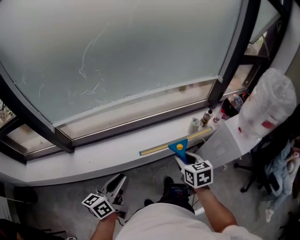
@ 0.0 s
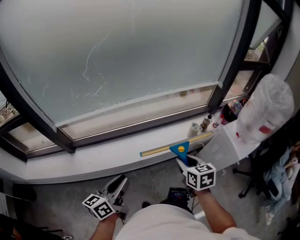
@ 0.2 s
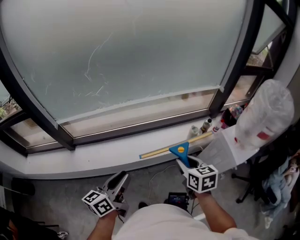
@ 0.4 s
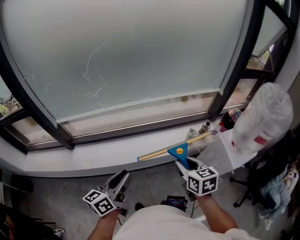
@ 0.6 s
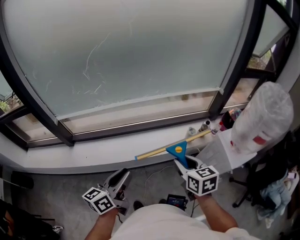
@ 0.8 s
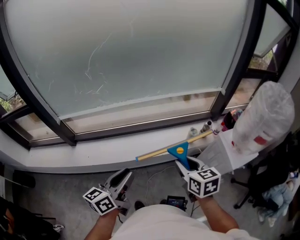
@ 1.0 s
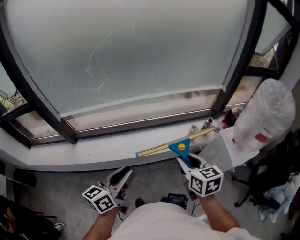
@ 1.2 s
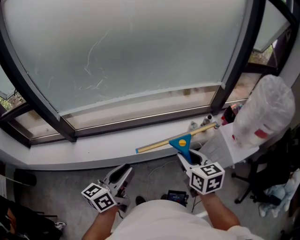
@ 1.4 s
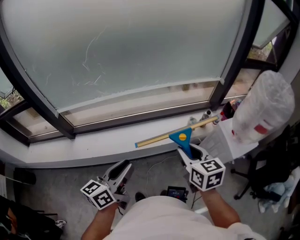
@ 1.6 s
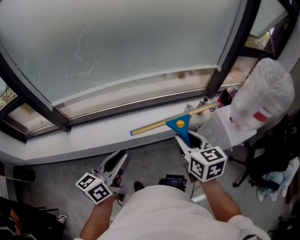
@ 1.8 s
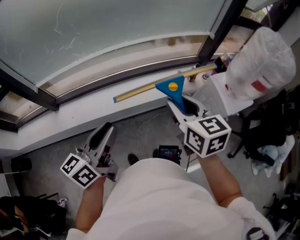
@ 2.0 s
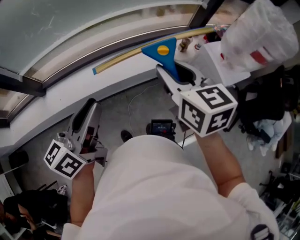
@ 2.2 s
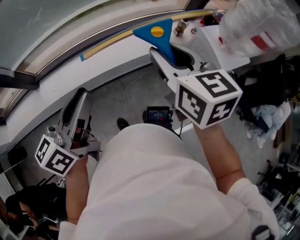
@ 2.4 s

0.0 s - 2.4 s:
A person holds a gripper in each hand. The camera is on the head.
0.0 s - 1.2 s: The right gripper goes some 10 cm upward and to the right. The left gripper goes some 15 cm to the right and upward.
1.2 s - 2.4 s: The grippers move only a little.

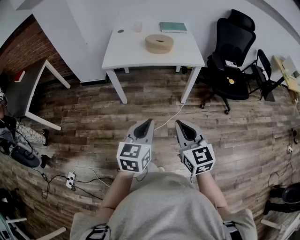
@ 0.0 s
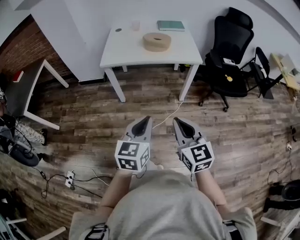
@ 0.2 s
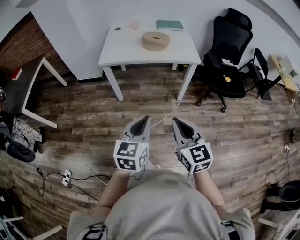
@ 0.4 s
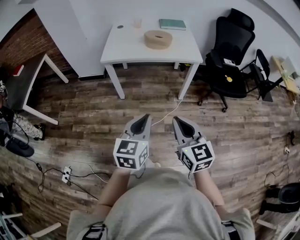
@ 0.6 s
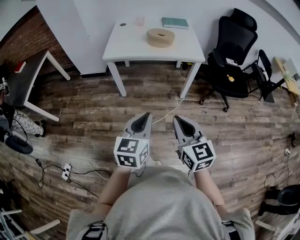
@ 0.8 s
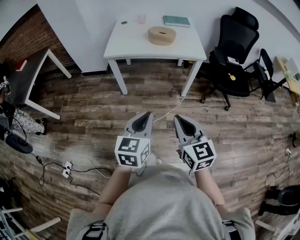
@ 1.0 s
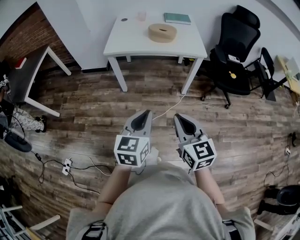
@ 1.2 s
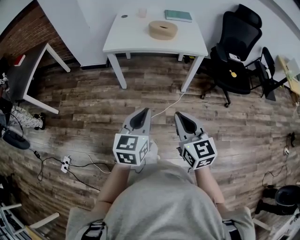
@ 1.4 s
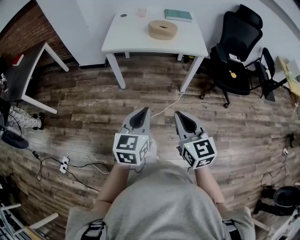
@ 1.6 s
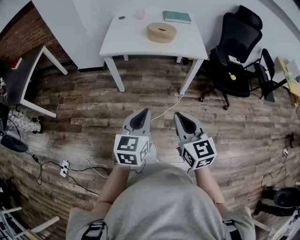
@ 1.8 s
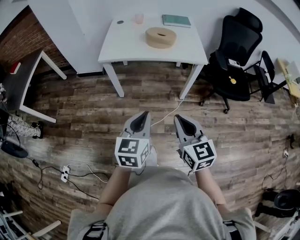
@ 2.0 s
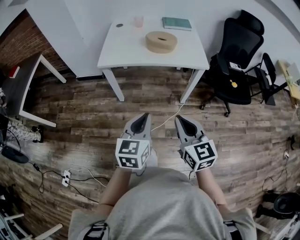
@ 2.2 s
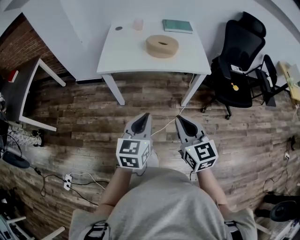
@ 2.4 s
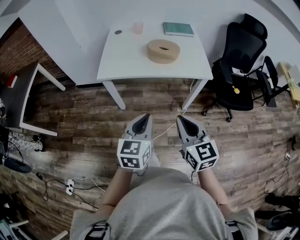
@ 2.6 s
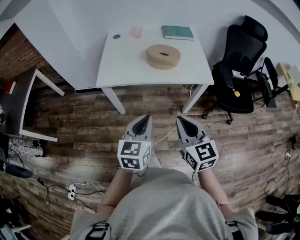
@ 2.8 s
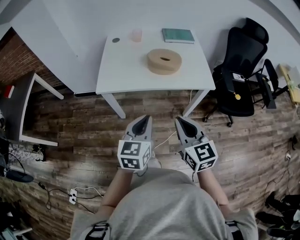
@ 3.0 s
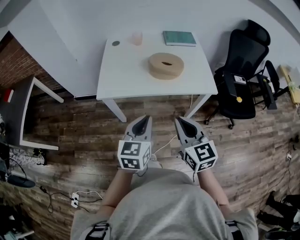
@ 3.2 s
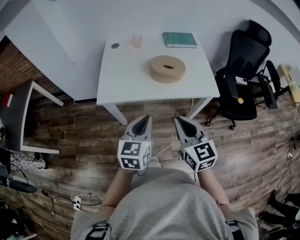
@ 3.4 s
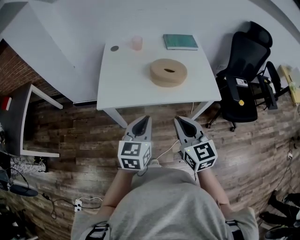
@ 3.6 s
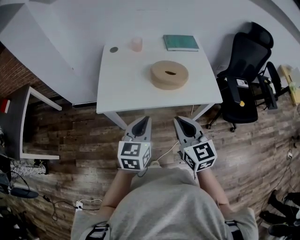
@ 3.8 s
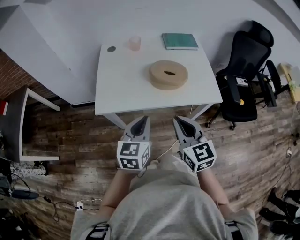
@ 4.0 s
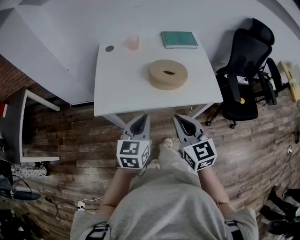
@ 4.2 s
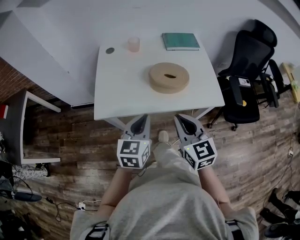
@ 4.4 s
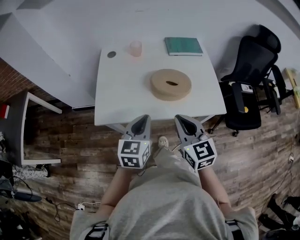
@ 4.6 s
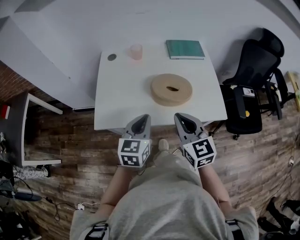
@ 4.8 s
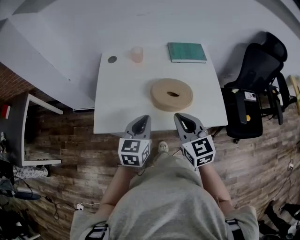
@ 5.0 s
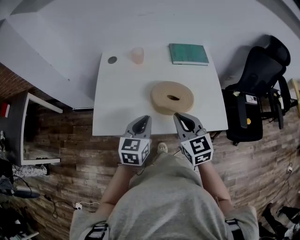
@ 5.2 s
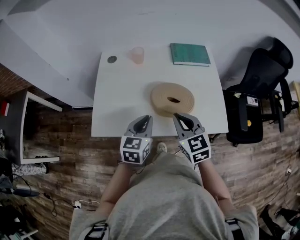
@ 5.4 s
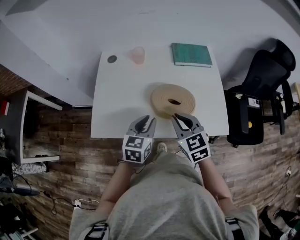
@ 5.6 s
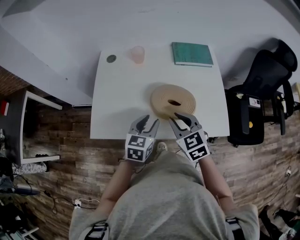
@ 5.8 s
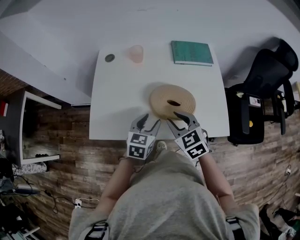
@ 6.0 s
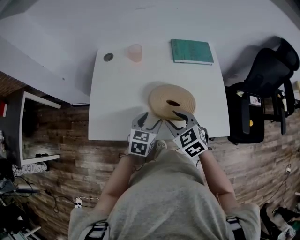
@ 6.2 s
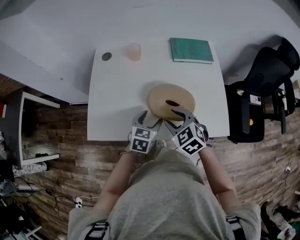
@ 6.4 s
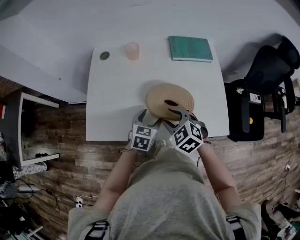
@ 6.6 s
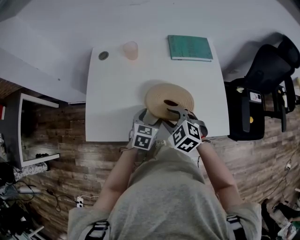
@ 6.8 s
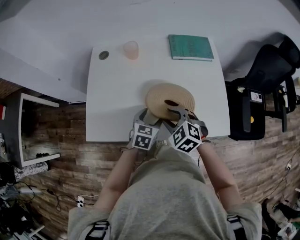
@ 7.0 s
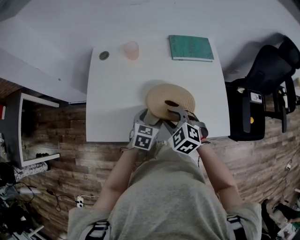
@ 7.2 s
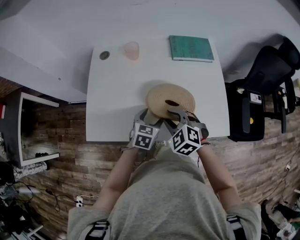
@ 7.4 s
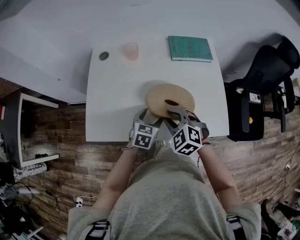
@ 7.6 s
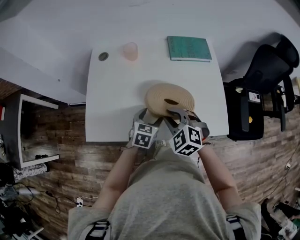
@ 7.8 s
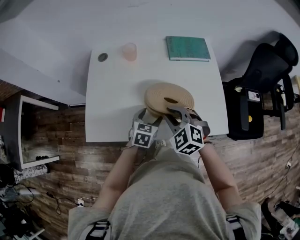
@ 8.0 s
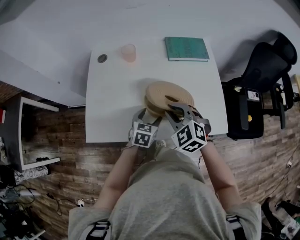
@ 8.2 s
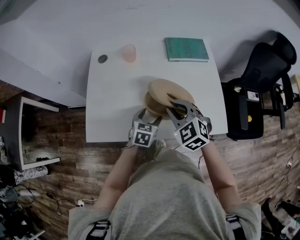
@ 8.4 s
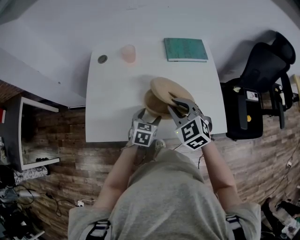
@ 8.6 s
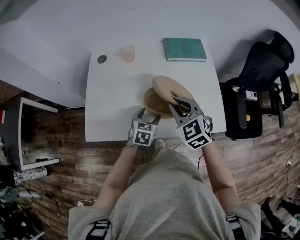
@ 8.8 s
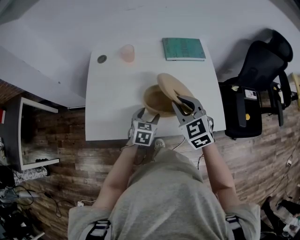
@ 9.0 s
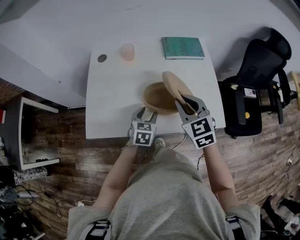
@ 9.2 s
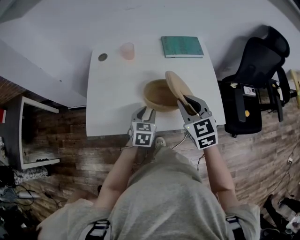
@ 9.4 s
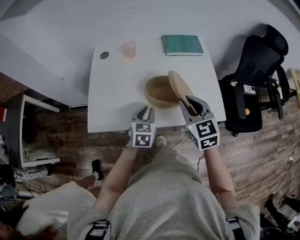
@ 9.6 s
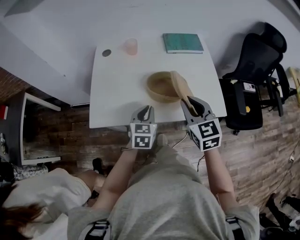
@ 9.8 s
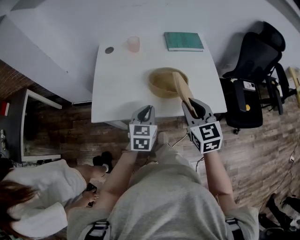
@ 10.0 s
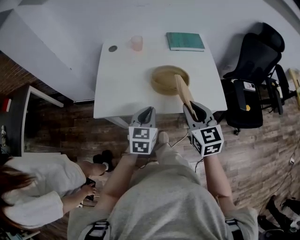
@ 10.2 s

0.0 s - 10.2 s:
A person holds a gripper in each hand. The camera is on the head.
0.0 s - 1.4 s: There are only small adjustments of the grippers.
1.4 s - 3.0 s: The two grippers go about 30 cm forward.
3.0 s - 4.4 s: The grippers both shift forward by some 20 cm.
4.4 s - 5.8 s: Both grippers travel together forward and downward, about 20 cm. The right gripper swivels roughly 20 degrees. Meanwhile the left gripper opens.
5.8 s - 7.2 s: Both grippers travel together downward, some 10 cm. The right gripper rotates some 30 degrees, and opens its fingers. The left gripper opens.
7.2 s - 8.8 s: The right gripper travels upward by approximately 10 cm, turns by roughly 20 degrees, and closes its fingers.
8.8 s - 10.2 s: The left gripper shifts approximately 20 cm backward and upward, and closes; the right gripper travels backward by approximately 15 cm, and rotates approximately 30 degrees.

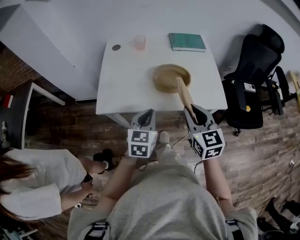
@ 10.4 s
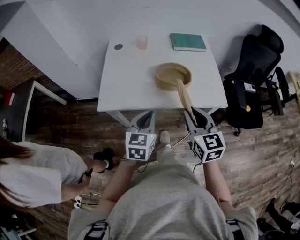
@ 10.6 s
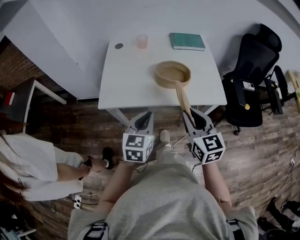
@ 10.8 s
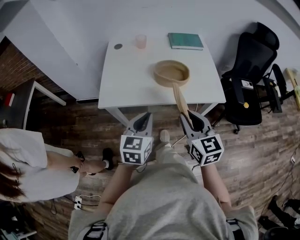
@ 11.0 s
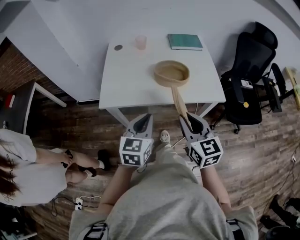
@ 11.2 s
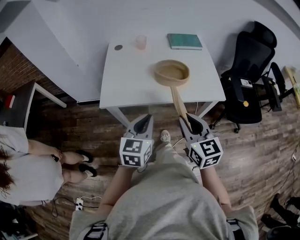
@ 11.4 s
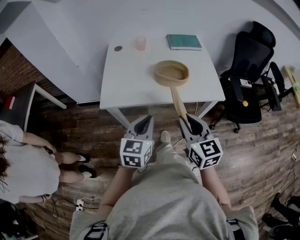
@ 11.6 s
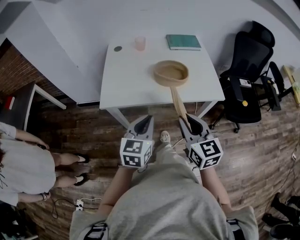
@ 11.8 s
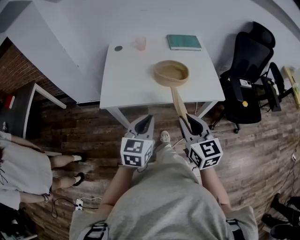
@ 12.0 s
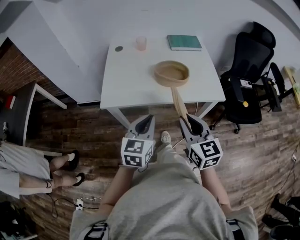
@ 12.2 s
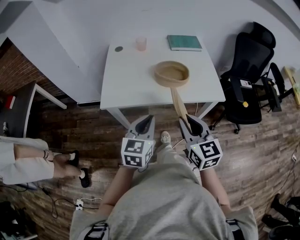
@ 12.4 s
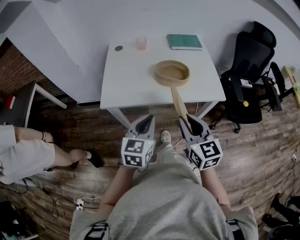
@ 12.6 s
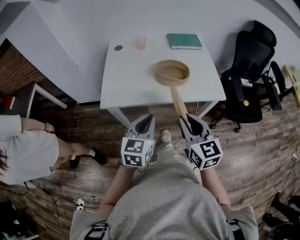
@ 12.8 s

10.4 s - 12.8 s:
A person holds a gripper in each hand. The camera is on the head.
10.4 s - 11.6 s: The two grippers go approximately 10 cm backward.
11.6 s - 12.8 s: Neither gripper changes place.

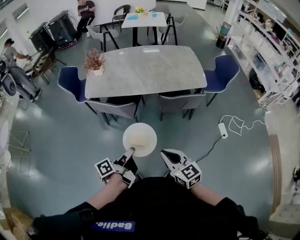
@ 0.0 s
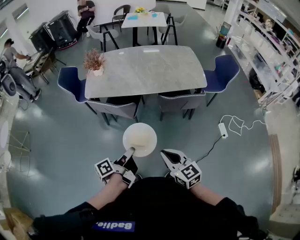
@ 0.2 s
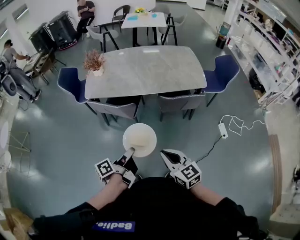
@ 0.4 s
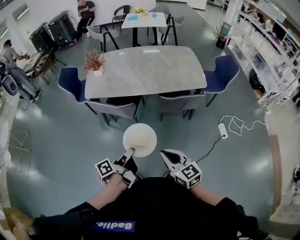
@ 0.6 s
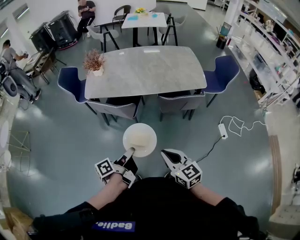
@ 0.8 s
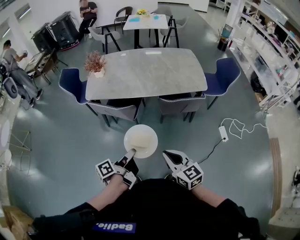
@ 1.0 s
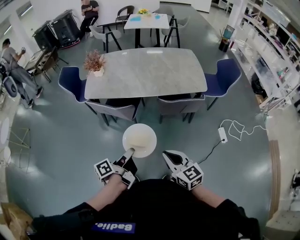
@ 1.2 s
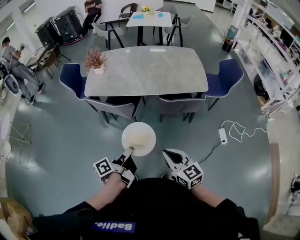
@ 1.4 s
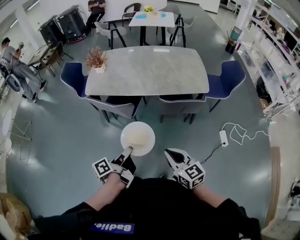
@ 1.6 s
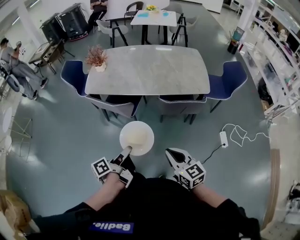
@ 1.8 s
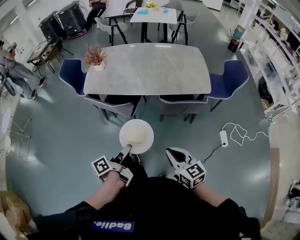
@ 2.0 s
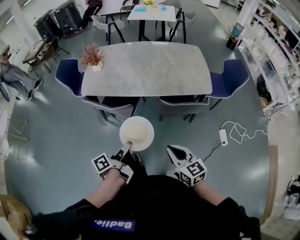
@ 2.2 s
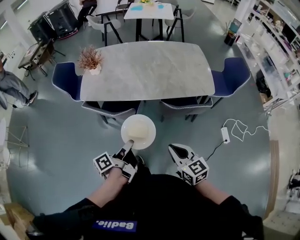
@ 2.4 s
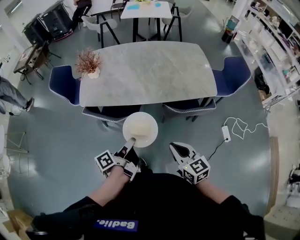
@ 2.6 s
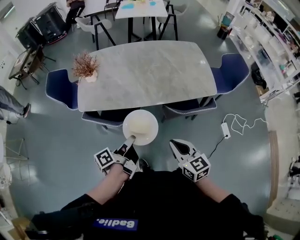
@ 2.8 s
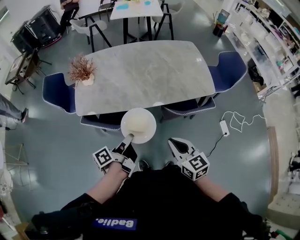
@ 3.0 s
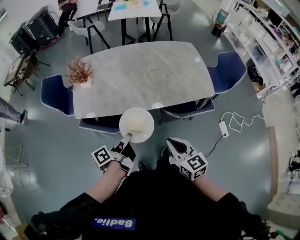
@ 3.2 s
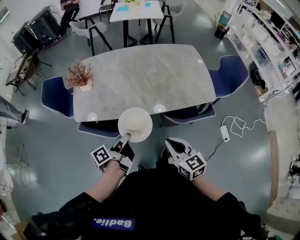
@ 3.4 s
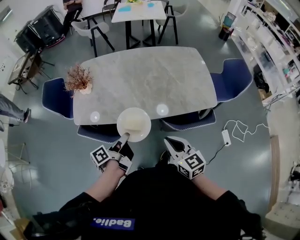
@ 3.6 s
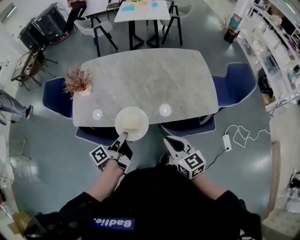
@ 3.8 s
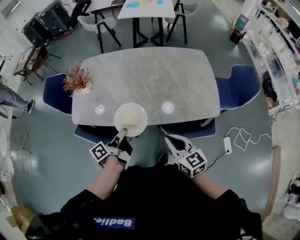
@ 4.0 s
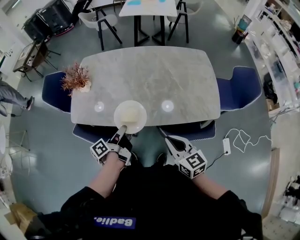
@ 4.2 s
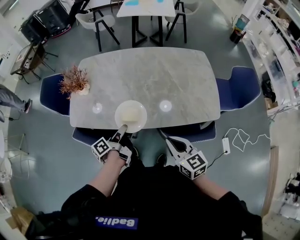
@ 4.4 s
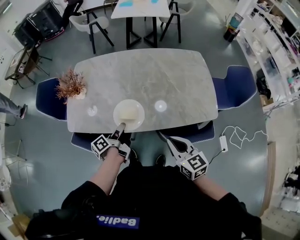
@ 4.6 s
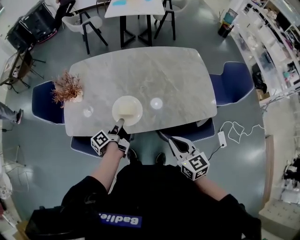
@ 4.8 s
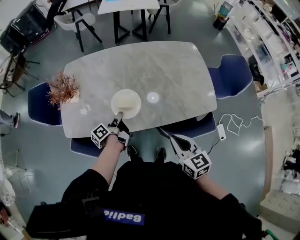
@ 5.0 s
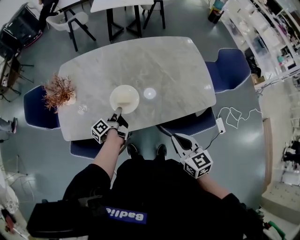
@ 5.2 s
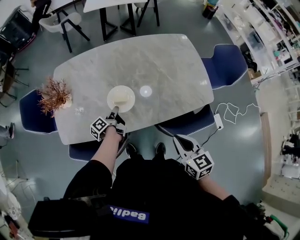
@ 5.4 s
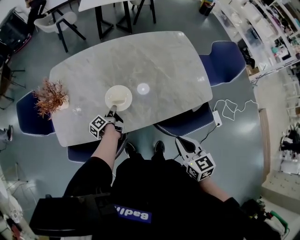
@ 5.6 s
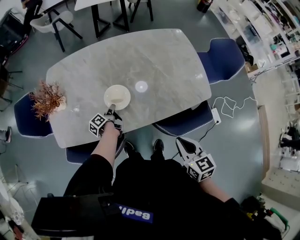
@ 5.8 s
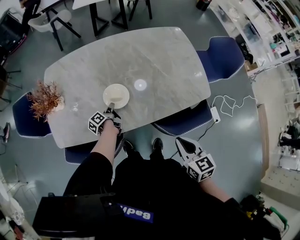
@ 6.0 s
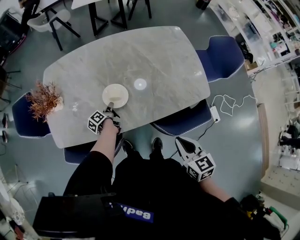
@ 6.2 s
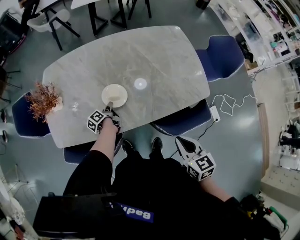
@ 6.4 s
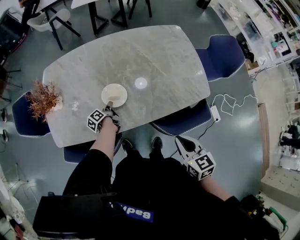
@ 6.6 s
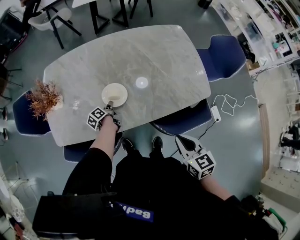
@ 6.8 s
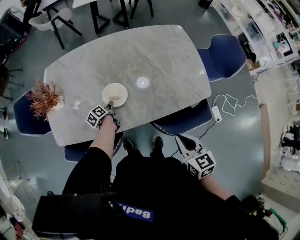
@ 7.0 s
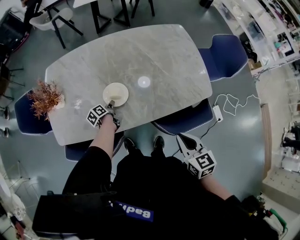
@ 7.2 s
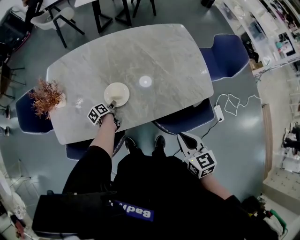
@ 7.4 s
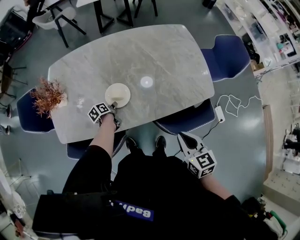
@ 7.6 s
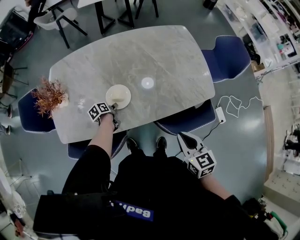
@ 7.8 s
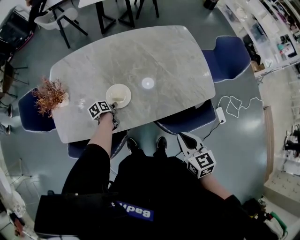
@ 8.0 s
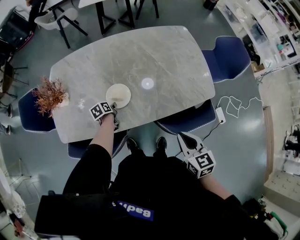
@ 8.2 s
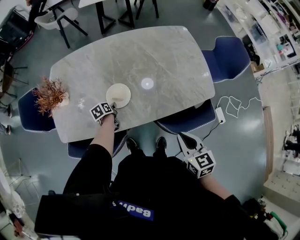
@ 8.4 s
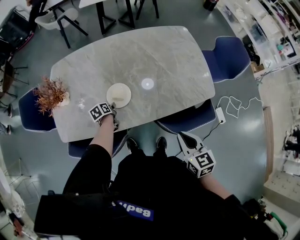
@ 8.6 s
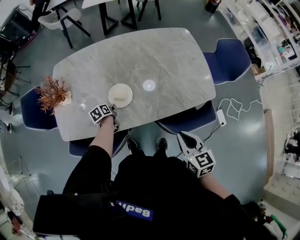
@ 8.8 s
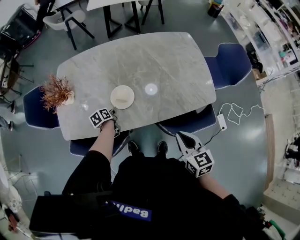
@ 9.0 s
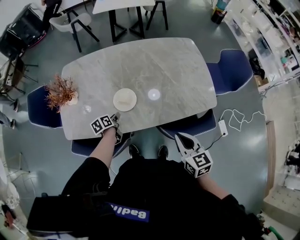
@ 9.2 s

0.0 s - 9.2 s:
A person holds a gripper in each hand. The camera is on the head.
0.0 s - 1.6 s: The right gripper ends up about 10 cm from where it was.
1.6 s - 3.0 s: The right gripper moves some 25 cm.
3.0 s - 4.6 s: The right gripper ends up about 20 cm from where it was.
4.6 s - 6.2 s: The right gripper ends up some 5 cm from where it was, and changes its angle by approximately 20 degrees.
